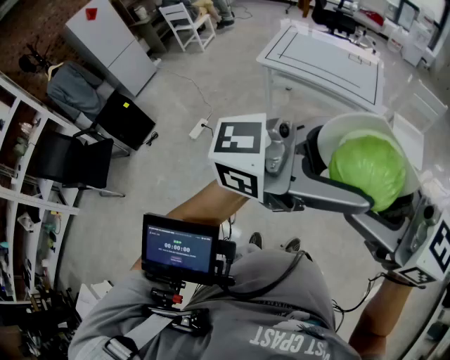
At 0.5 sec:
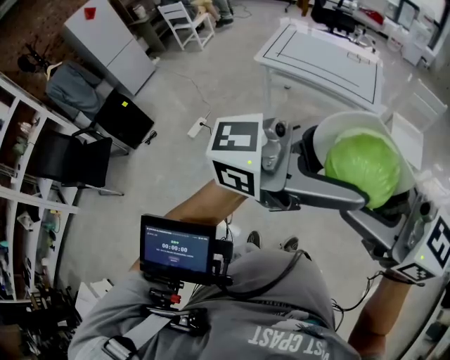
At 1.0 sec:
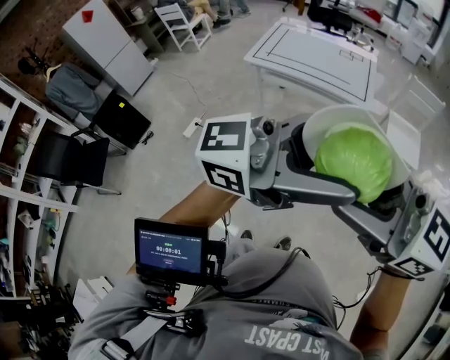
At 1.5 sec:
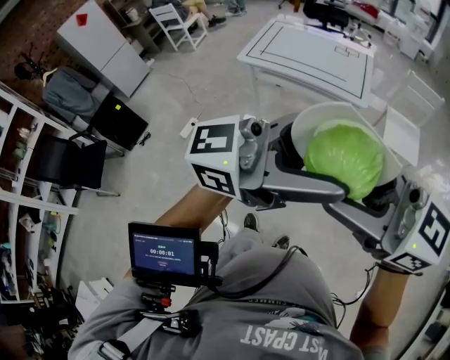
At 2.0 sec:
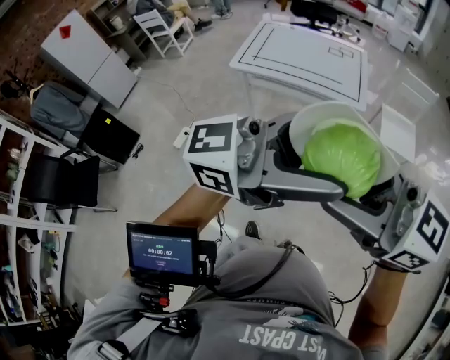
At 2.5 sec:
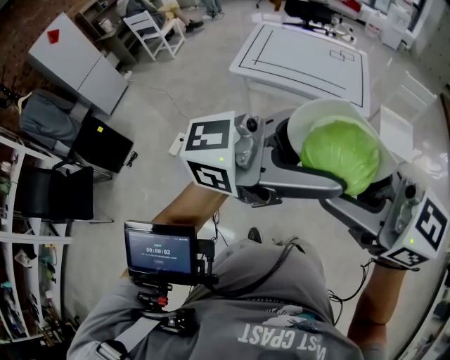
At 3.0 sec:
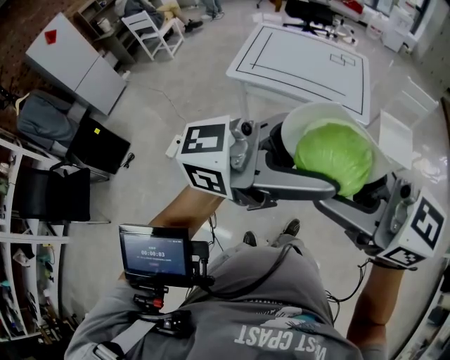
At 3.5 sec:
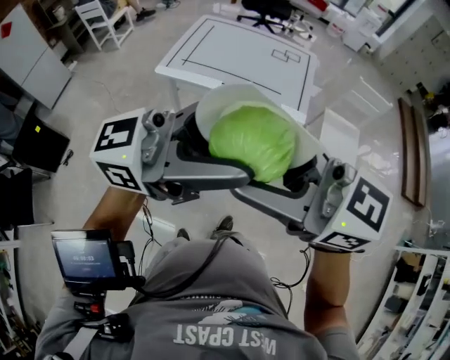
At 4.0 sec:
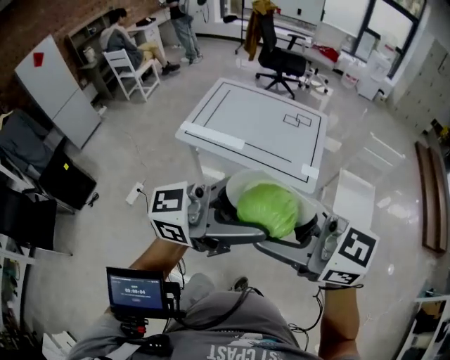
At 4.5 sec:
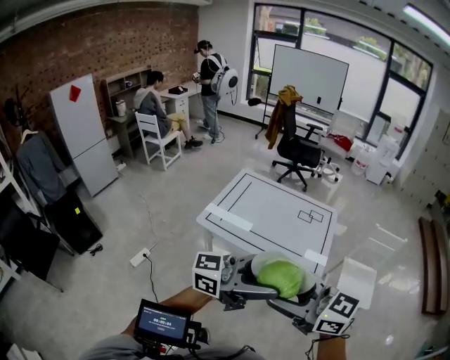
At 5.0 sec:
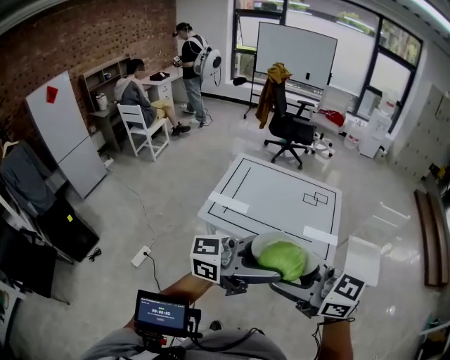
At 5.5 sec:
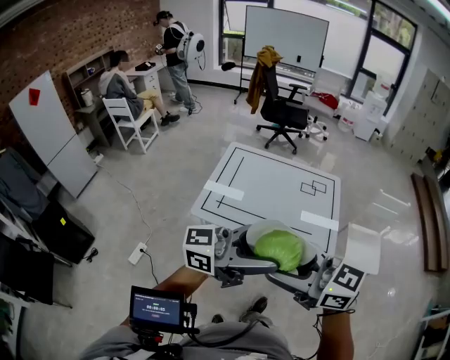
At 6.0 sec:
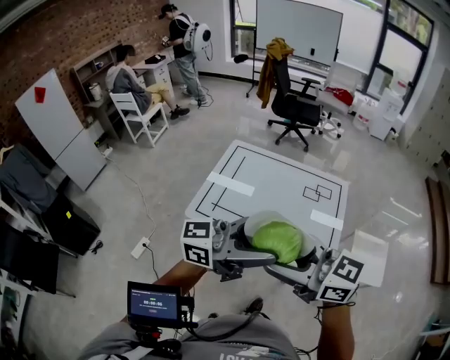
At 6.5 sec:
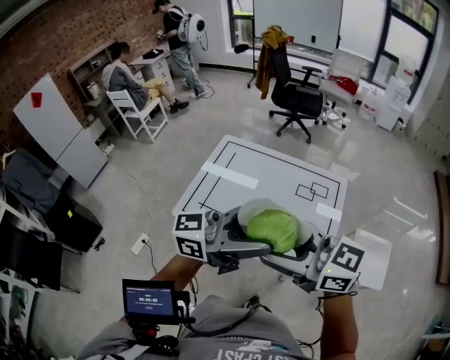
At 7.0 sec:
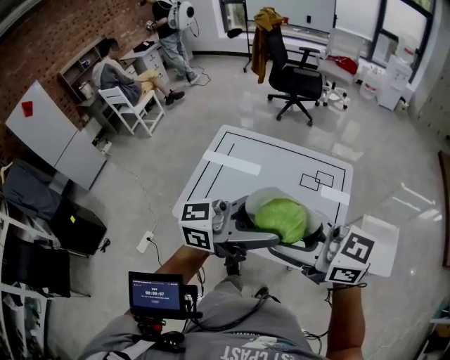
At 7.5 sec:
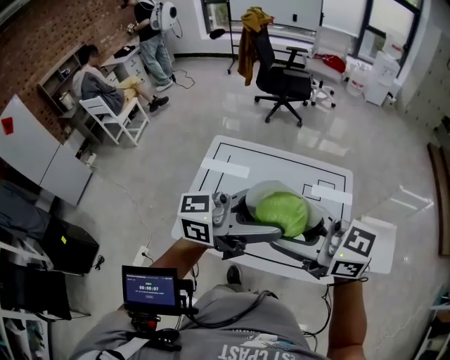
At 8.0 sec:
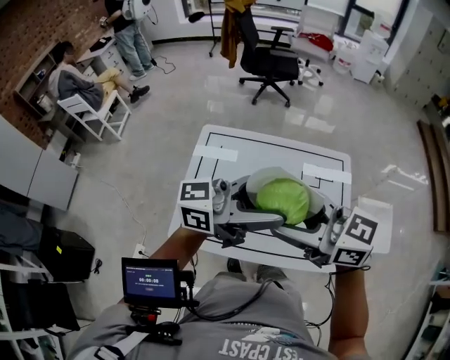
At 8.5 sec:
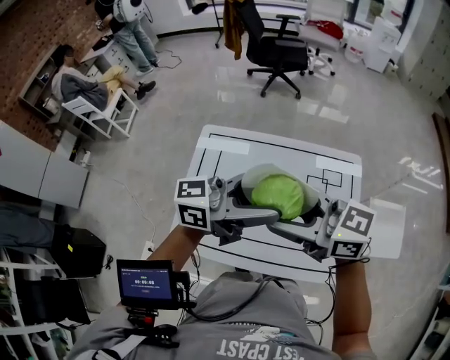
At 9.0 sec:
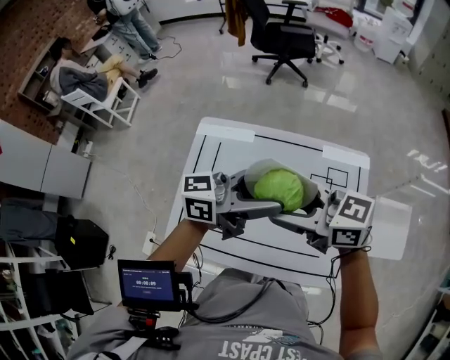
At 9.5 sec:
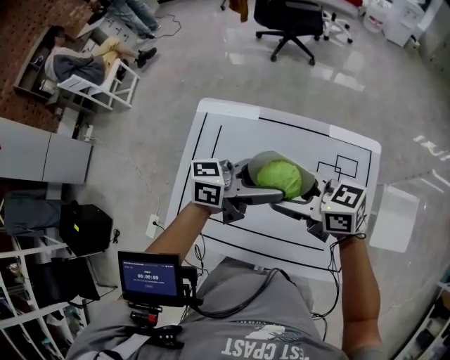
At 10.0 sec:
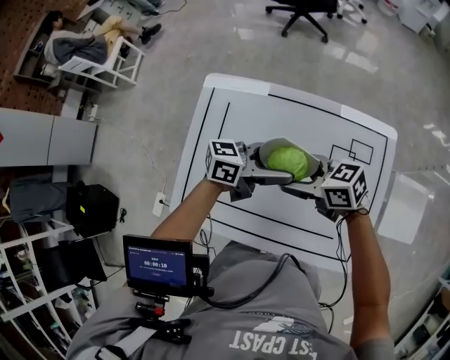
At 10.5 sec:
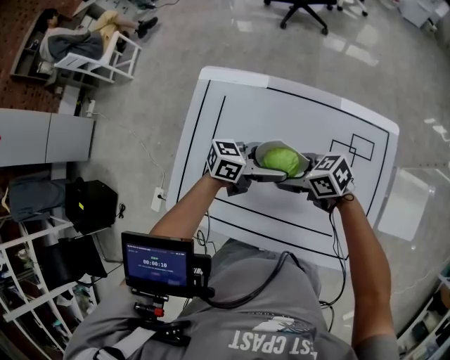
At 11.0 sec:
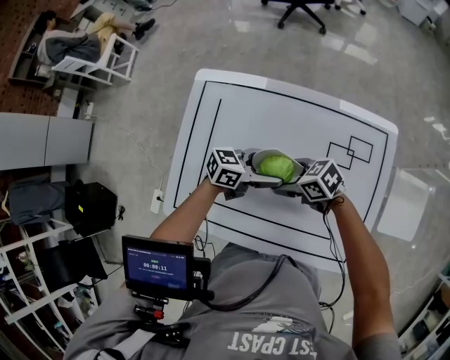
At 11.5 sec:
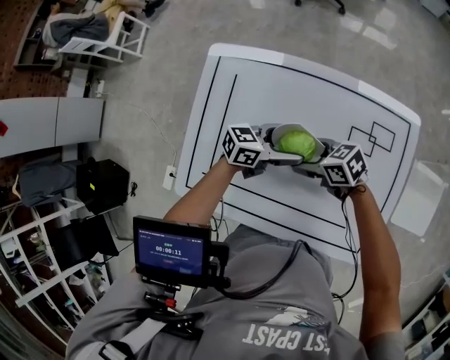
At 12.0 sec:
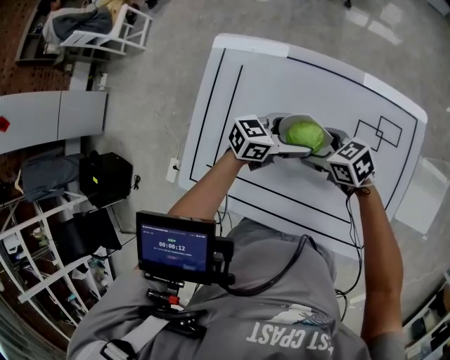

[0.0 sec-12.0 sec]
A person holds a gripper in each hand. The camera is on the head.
0.0 sec to 2.0 sec: The left gripper changes place by approximately 10 cm; the right gripper shifts by roughly 10 cm.
2.0 sec to 4.0 sec: The left gripper shifts by about 25 cm; the right gripper shifts by about 25 cm.
4.0 sec to 6.0 sec: The left gripper shifts by approximately 30 cm. The right gripper ends up approximately 30 cm from where it was.
6.0 sec to 8.0 sec: The right gripper shifts by some 25 cm; the left gripper changes place by approximately 25 cm.
8.0 sec to 10.0 sec: Both grippers move downward, about 25 cm. The right gripper rotates approximately 30 degrees. Meanwhile the left gripper swivels approximately 30 degrees.
10.0 sec to 12.0 sec: Both grippers move downward, some 10 cm.

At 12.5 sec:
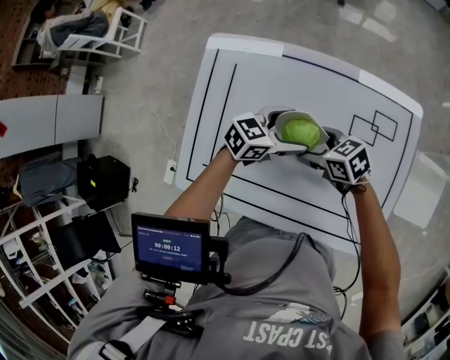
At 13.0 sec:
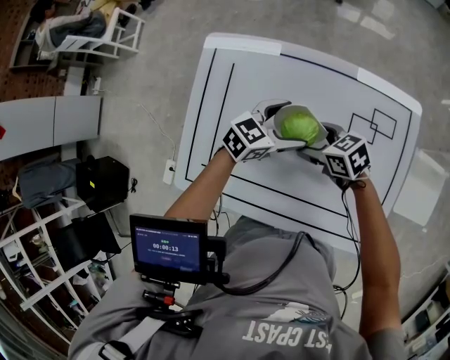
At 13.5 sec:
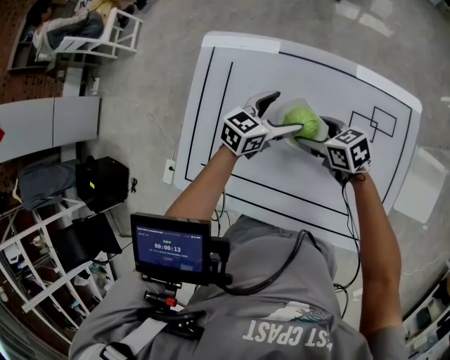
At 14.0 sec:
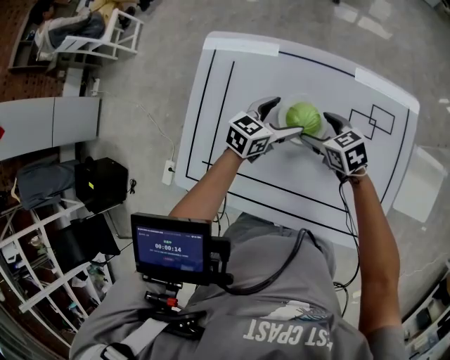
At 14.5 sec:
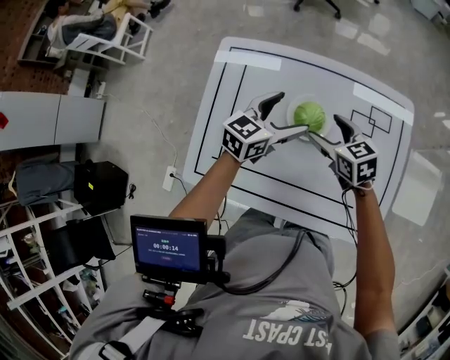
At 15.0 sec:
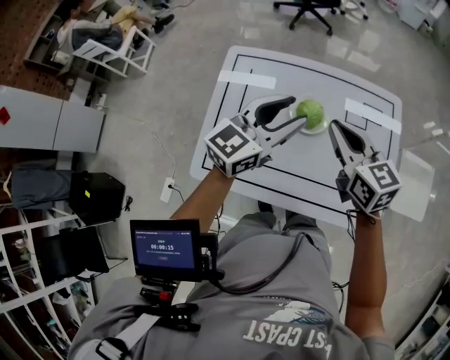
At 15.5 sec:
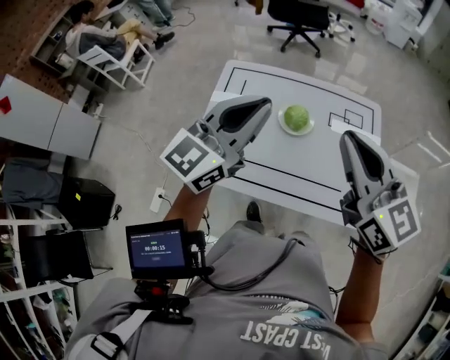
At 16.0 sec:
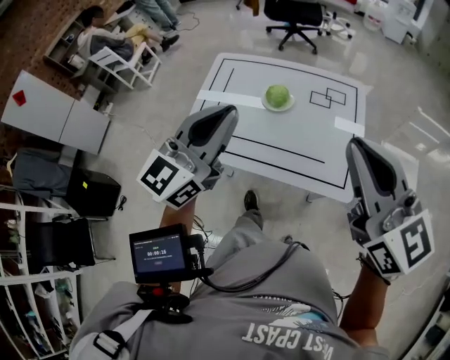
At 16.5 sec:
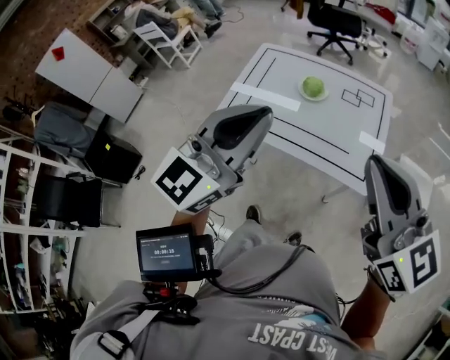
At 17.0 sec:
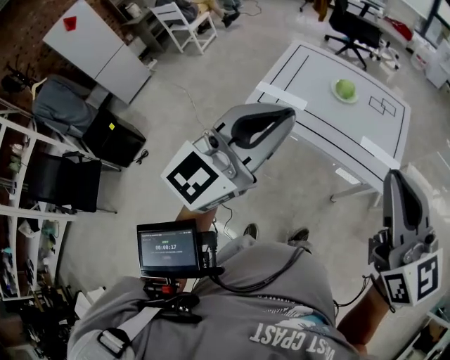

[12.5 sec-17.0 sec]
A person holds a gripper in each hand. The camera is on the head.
12.5 sec to 14.5 sec: The right gripper shifts by about 5 cm, and changes its angle by roughly 30 degrees. The left gripper heads upward, covering some 5 cm, and rotates roughly 20 degrees.
14.5 sec to 17.0 sec: Both grippers are carried backward, some 60 cm. The grippers both shift upward by about 40 cm. The right gripper tips its fingers upward by some 30 degrees, and closes up. Meanwhile the left gripper changes its angle by about 40 degrees, and closes.

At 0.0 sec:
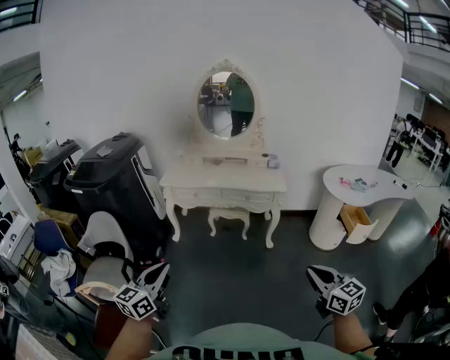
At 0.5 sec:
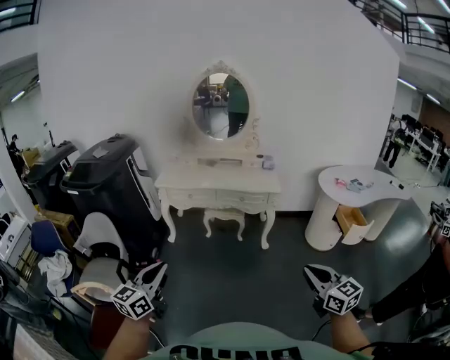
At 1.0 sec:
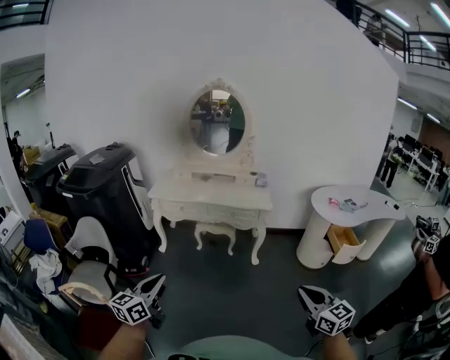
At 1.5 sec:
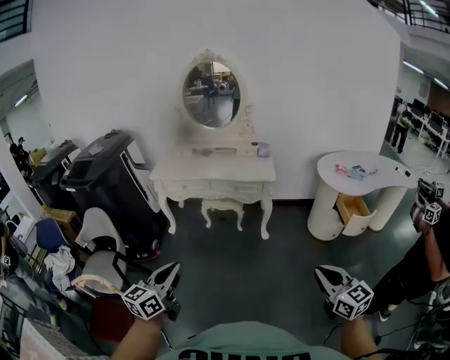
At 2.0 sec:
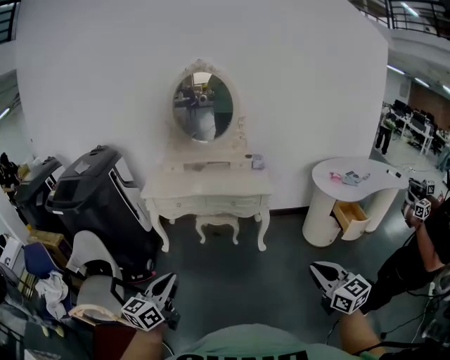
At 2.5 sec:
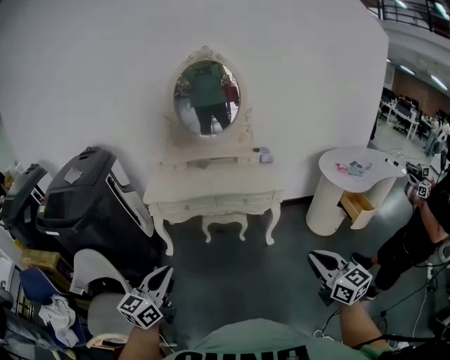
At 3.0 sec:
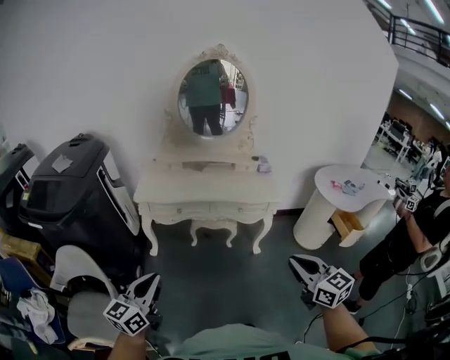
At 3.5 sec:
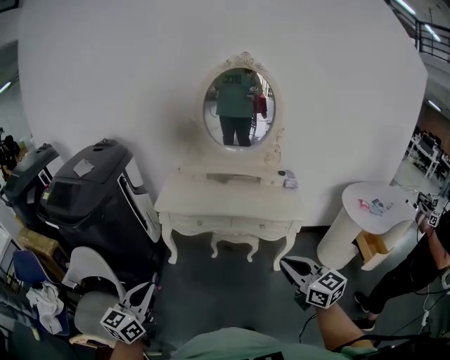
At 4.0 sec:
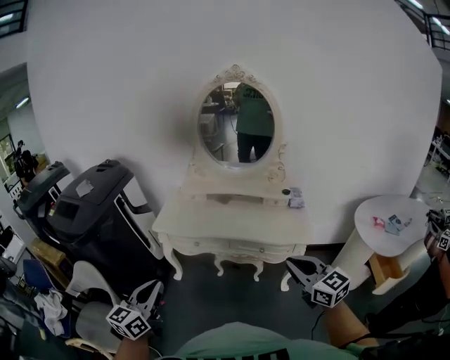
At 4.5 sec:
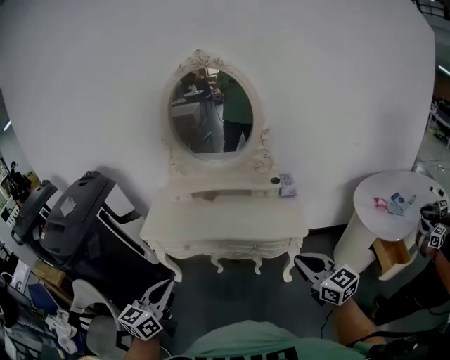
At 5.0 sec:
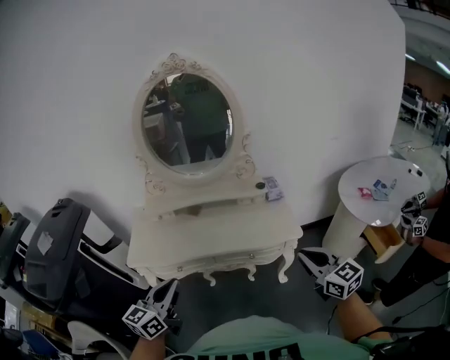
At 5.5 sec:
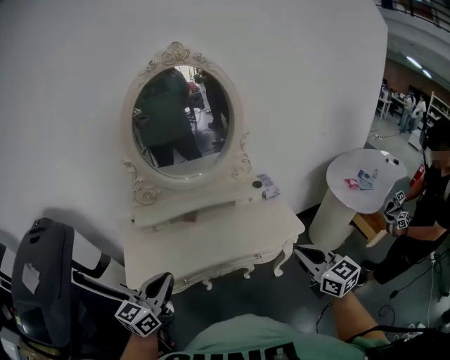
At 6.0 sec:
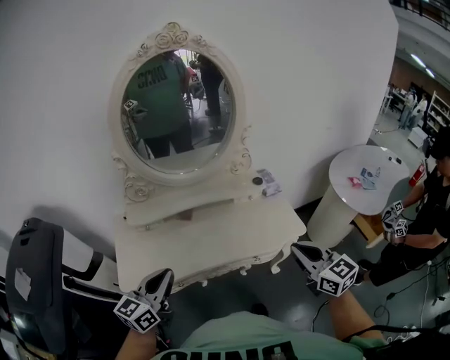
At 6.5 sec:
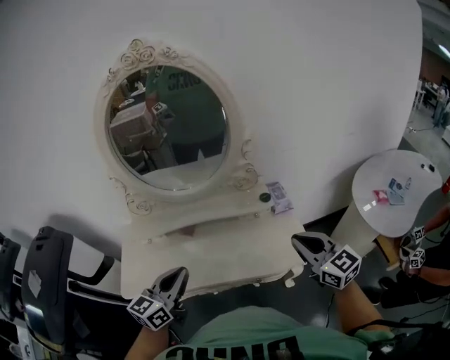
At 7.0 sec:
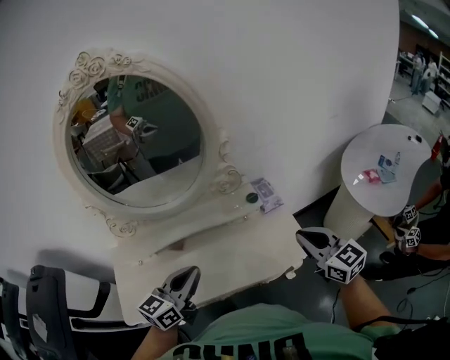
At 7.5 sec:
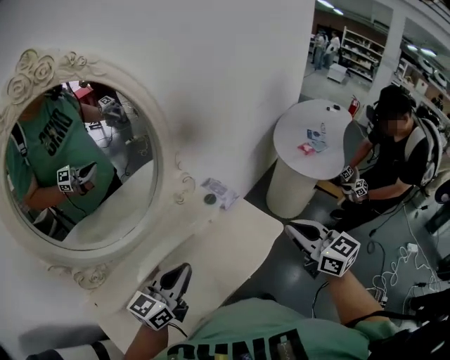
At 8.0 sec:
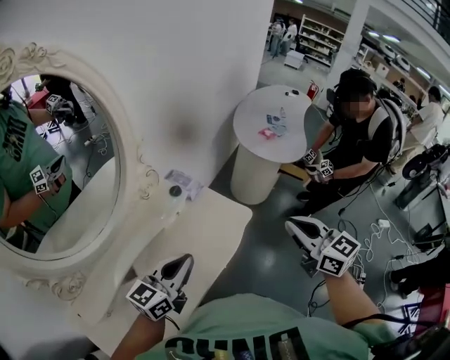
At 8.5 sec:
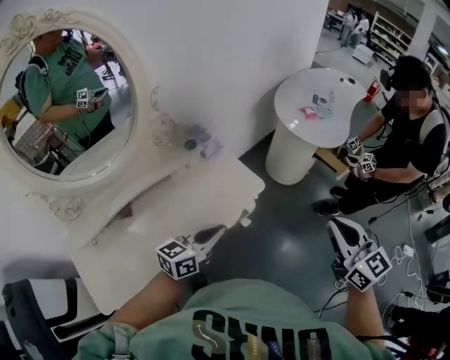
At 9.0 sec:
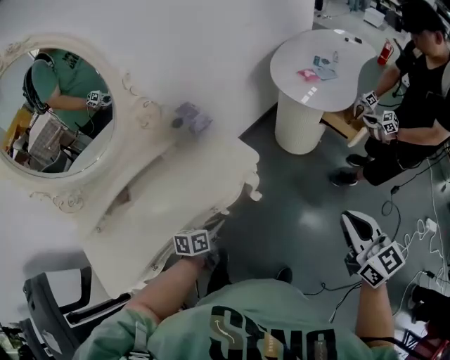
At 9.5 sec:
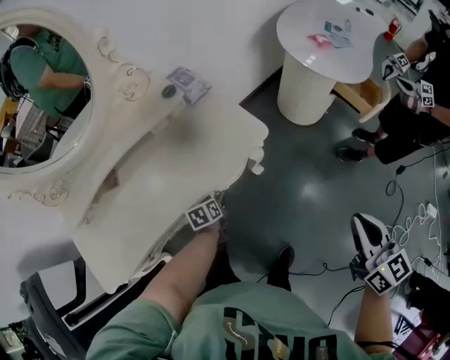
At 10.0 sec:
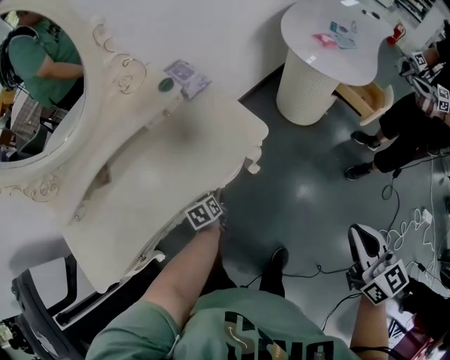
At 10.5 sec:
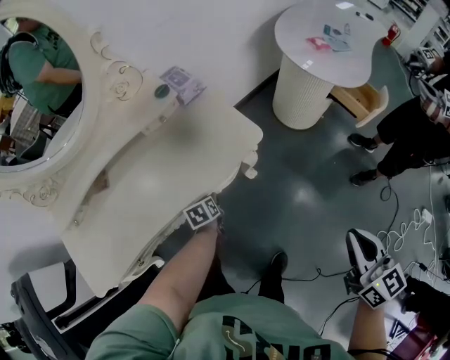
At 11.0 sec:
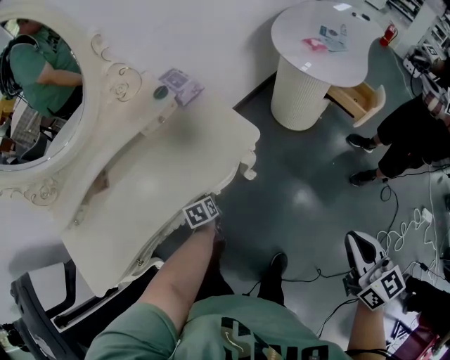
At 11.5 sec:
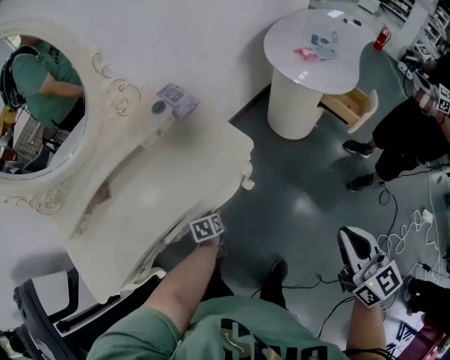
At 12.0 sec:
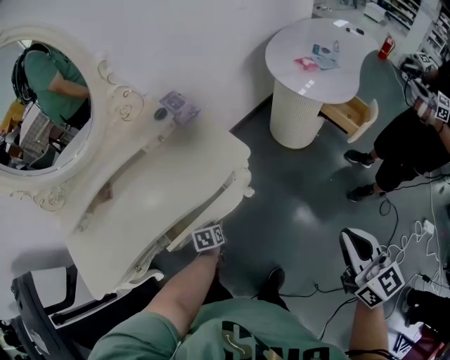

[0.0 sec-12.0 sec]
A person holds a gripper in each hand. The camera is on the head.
0.0 sec to 2.0 sec: The grippers both shift forward and to the right by some 10 cm.
2.0 sec to 4.0 sec: Both grippers move forward, approximately 35 cm.
4.0 sec to 6.0 sec: The left gripper ends up roughly 40 cm from where it was, and turns by approximately 30 degrees. The right gripper changes place by some 25 cm, and changes its angle by about 30 degrees.
6.0 sec to 8.0 sec: The left gripper changes place by about 30 cm, and turns by roughly 50 degrees; the right gripper rotates roughly 40 degrees.
8.0 sec to 10.0 sec: The left gripper goes roughly 40 cm downward, tips its fingers downward by roughly 50 degrees, and opens up. Meanwhile the right gripper goes approximately 30 cm to the right and downward.
10.0 sec to 12.0 sec: The left gripper shifts roughly 10 cm backward and to the right, and closes up. The right gripper changes place by about 5 cm.
